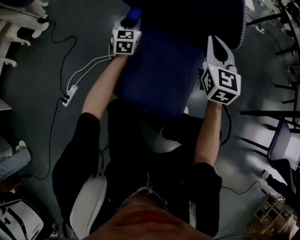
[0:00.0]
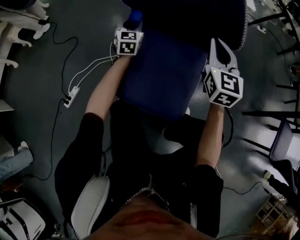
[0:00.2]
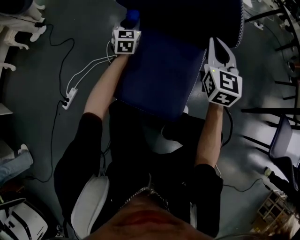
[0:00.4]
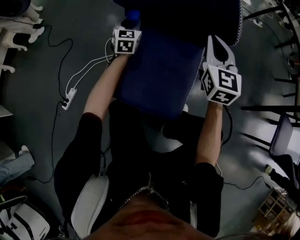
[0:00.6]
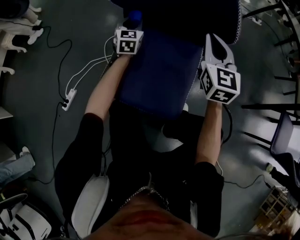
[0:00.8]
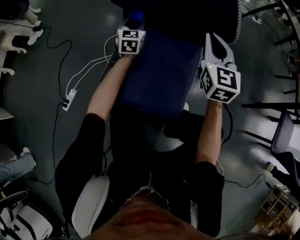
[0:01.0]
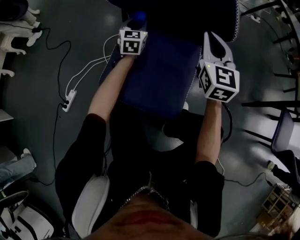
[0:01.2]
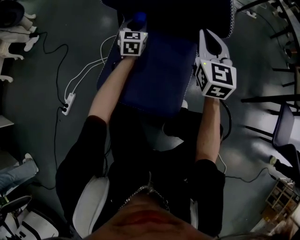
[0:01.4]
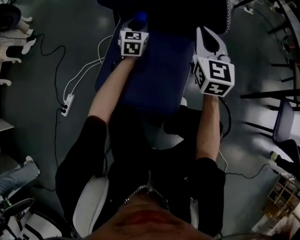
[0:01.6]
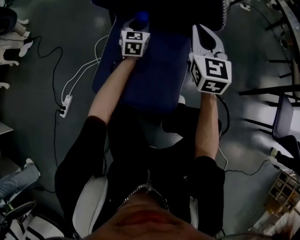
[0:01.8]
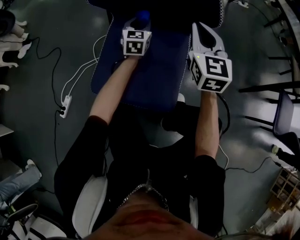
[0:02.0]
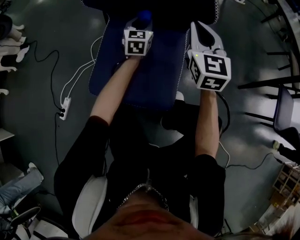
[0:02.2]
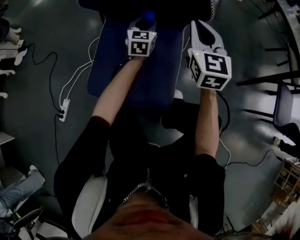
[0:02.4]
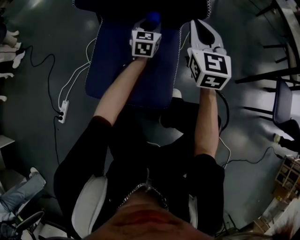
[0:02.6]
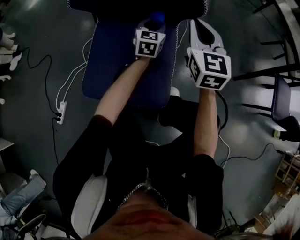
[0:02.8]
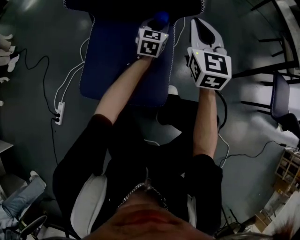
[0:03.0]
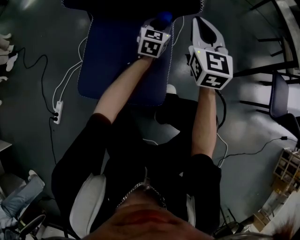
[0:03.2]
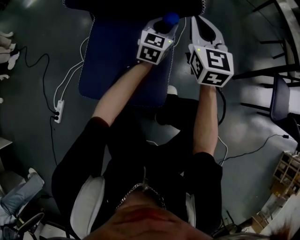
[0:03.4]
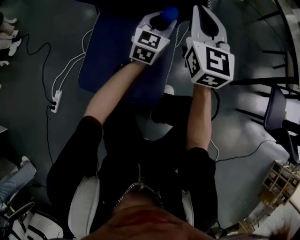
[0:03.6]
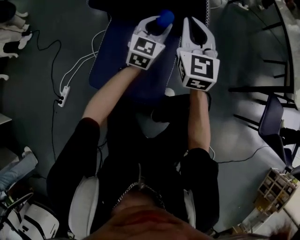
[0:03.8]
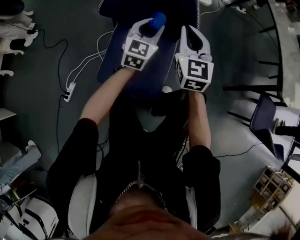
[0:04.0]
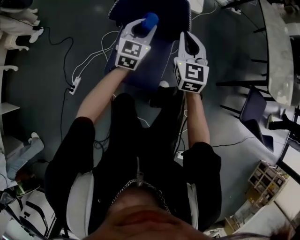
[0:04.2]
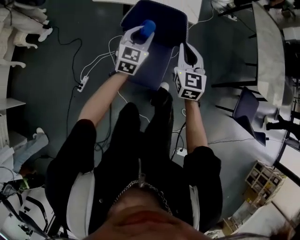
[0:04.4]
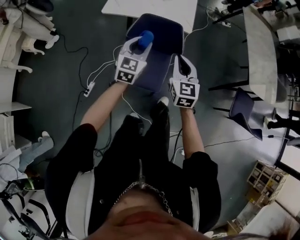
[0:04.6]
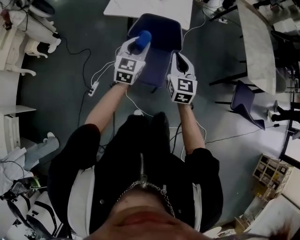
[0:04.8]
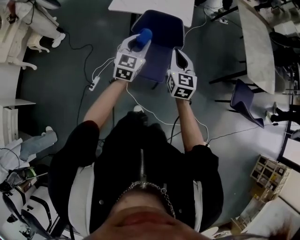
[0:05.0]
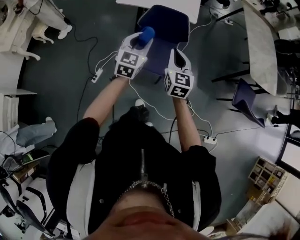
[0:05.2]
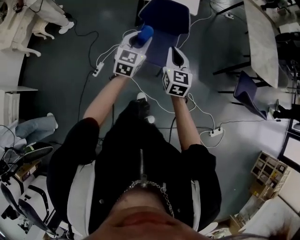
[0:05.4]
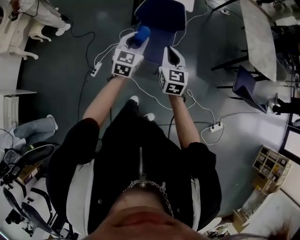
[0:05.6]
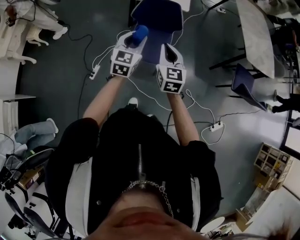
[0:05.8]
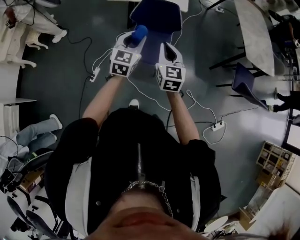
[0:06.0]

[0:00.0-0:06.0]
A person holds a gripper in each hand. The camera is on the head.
0:00.0 to 0:01.6: The left gripper shifts some 10 cm to the right.
0:01.6 to 0:03.0: The left gripper heads to the right, covering roughly 20 cm. Meanwhile the right gripper moves to the right, about 5 cm.
0:03.0 to 0:04.4: The two grippers go about 40 cm upward.
0:04.4 to 0:06.0: The two grippers go roughly 30 cm backward and upward.

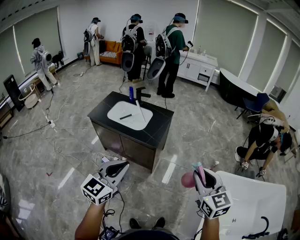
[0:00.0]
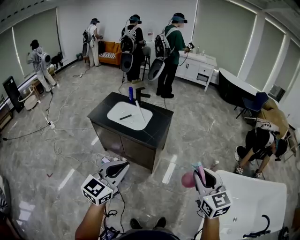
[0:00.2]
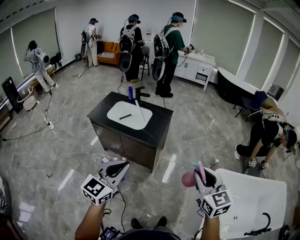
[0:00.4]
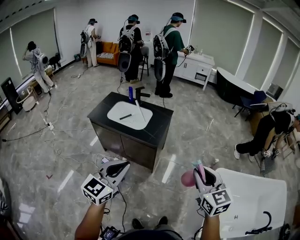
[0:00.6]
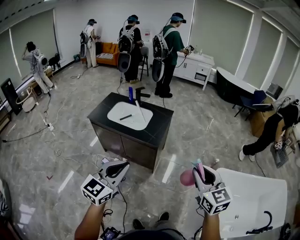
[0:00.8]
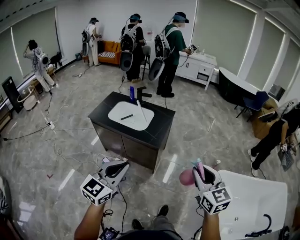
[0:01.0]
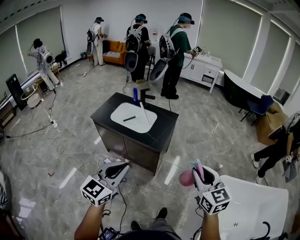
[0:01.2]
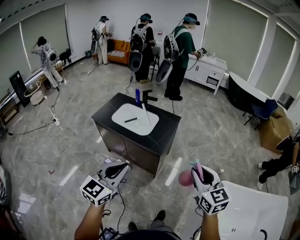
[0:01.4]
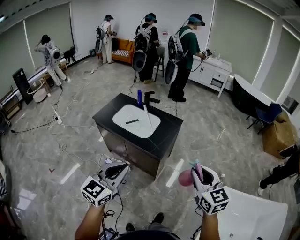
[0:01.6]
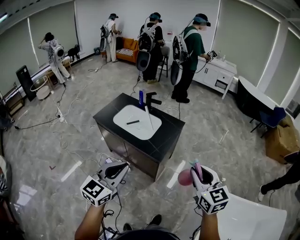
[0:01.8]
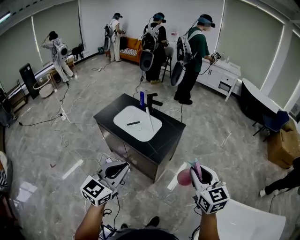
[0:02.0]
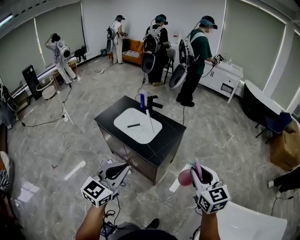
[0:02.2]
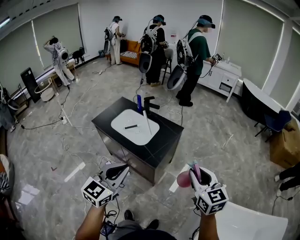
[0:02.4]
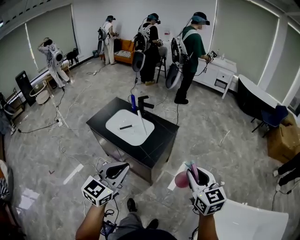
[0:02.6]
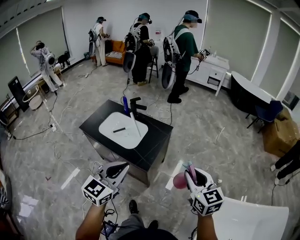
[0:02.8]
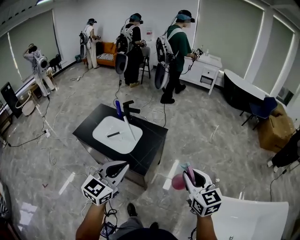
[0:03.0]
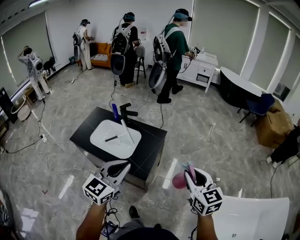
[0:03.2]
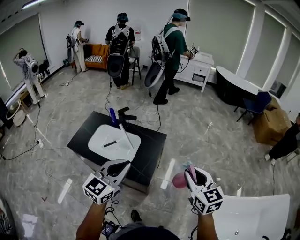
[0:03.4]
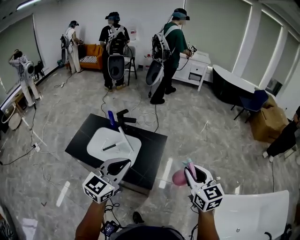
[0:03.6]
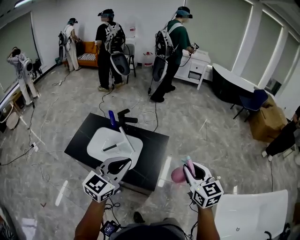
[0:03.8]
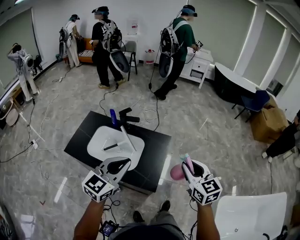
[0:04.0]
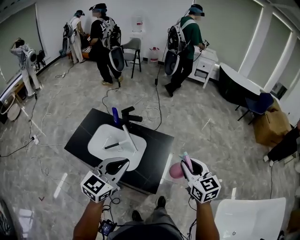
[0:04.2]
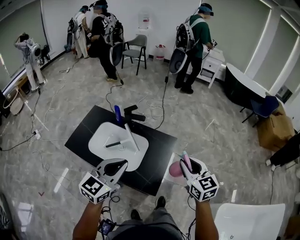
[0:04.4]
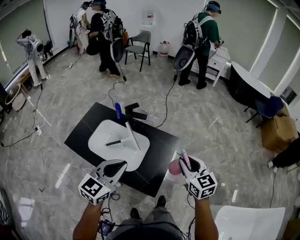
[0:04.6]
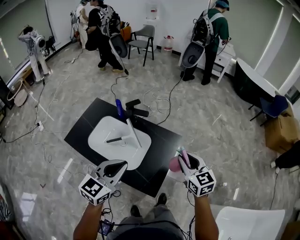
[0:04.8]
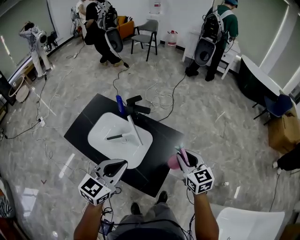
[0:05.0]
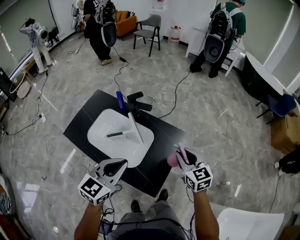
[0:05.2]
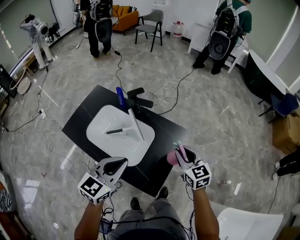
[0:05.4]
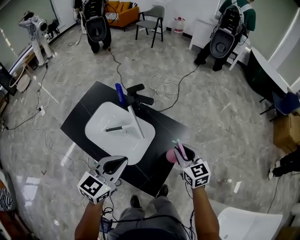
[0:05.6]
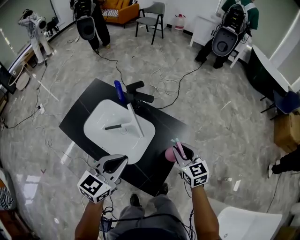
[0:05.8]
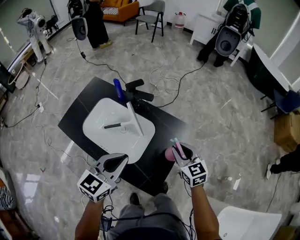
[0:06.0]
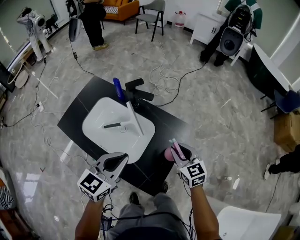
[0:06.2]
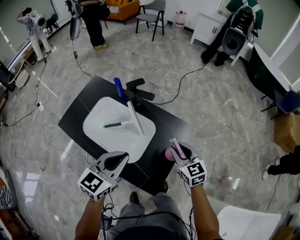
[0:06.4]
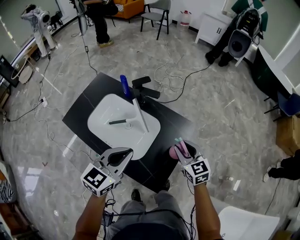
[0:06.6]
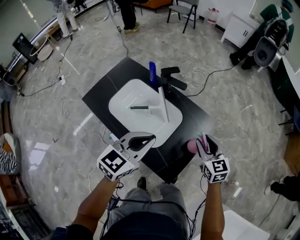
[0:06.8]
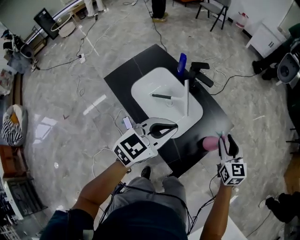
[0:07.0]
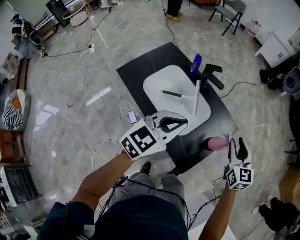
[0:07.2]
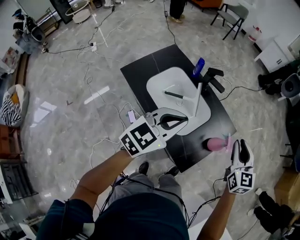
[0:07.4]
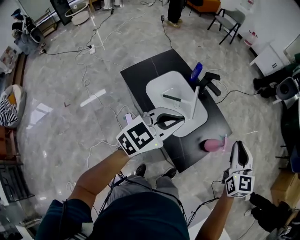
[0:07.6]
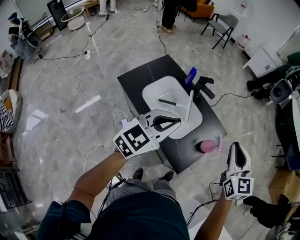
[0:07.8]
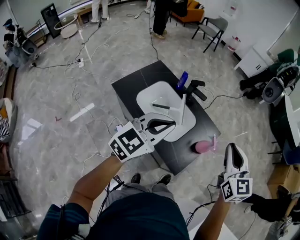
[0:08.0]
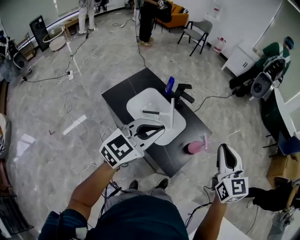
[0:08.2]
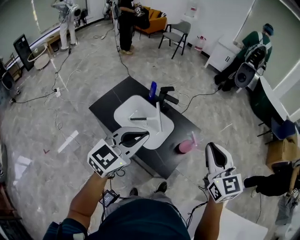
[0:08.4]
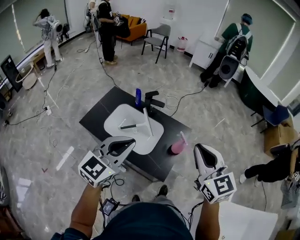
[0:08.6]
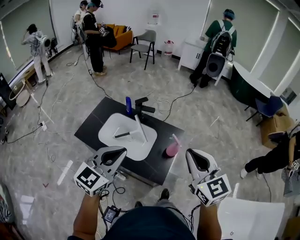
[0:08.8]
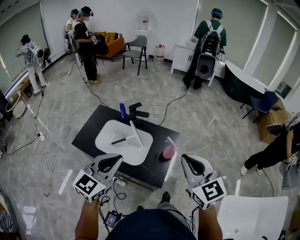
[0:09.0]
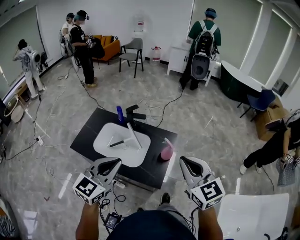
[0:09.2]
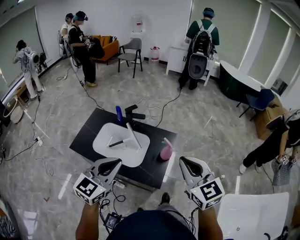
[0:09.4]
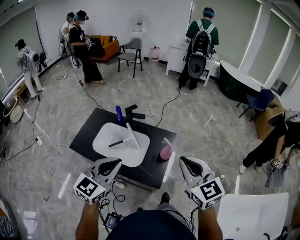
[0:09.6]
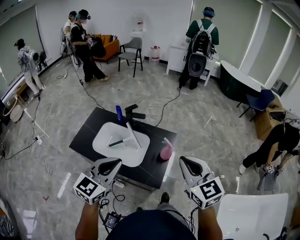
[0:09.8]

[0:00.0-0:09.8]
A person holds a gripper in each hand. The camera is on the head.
0:00.0 to 0:01.4: The left gripper is displaced forward by roughly 5 cm; the right gripper heads forward, covering some 10 cm.
0:01.4 to 0:02.8: The two grippers go some 20 cm forward and to the right.
0:02.8 to 0:04.2: Both grippers move forward and to the left, about 30 cm.
0:04.2 to 0:05.6: The left gripper shifts roughly 15 cm downward and forward, while the right gripper is displaced downward and forward by about 30 cm.
0:05.6 to 0:07.0: There are only small adjustments of the grippers.
0:07.0 to 0:08.4: The right gripper moves upward and backward, about 30 cm, and closes its fingers, while the left gripper travels upward and backward by approximately 20 cm.
0:08.4 to 0:09.8: The right gripper goes some 5 cm backward.

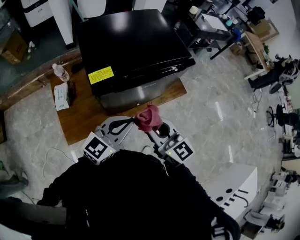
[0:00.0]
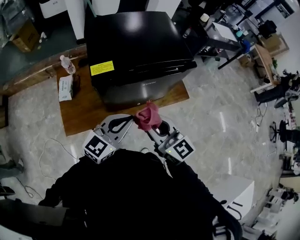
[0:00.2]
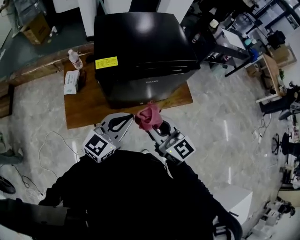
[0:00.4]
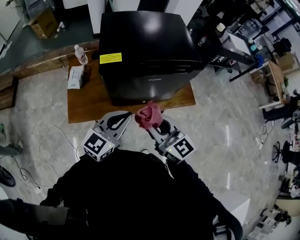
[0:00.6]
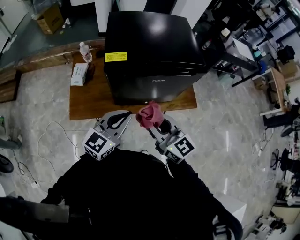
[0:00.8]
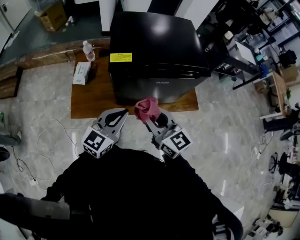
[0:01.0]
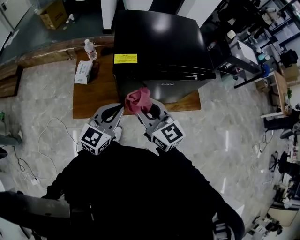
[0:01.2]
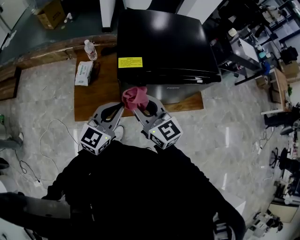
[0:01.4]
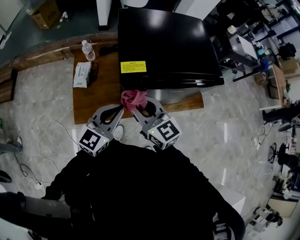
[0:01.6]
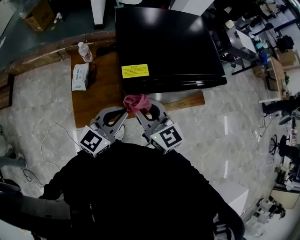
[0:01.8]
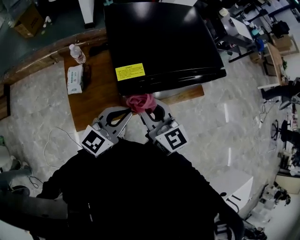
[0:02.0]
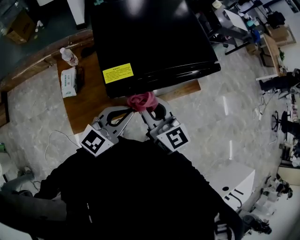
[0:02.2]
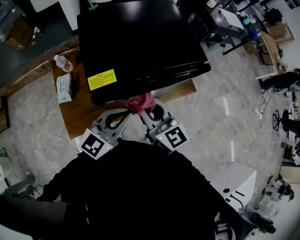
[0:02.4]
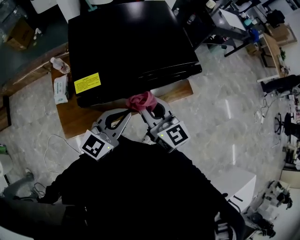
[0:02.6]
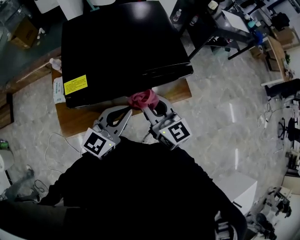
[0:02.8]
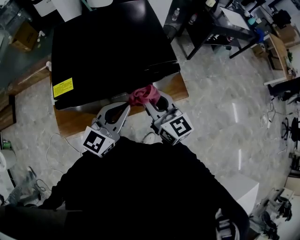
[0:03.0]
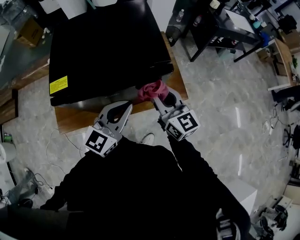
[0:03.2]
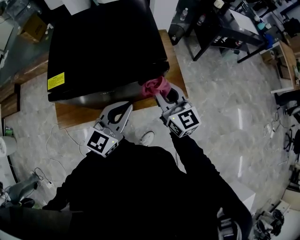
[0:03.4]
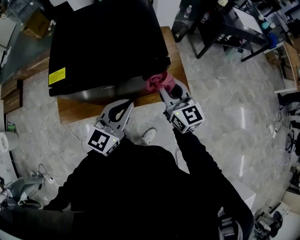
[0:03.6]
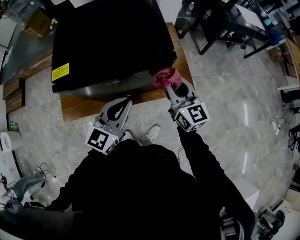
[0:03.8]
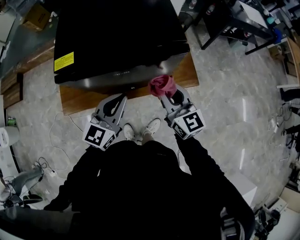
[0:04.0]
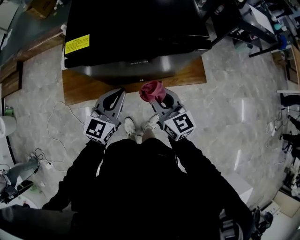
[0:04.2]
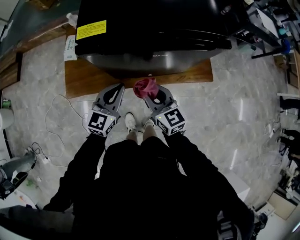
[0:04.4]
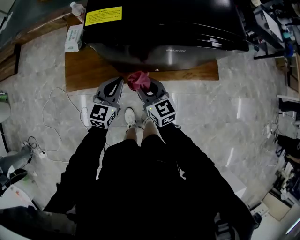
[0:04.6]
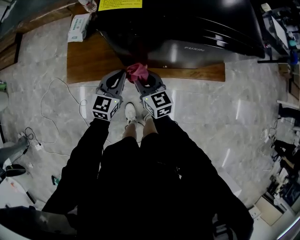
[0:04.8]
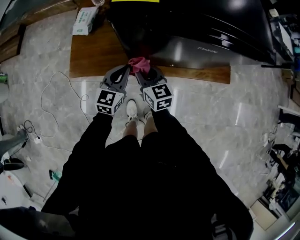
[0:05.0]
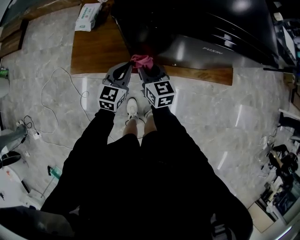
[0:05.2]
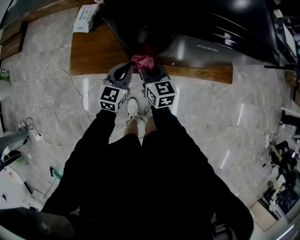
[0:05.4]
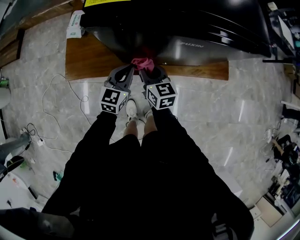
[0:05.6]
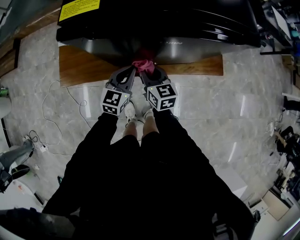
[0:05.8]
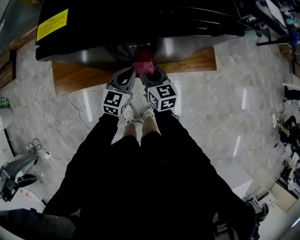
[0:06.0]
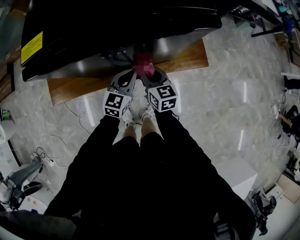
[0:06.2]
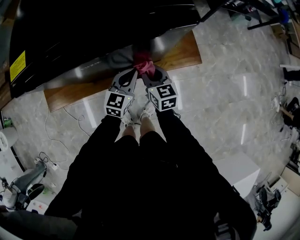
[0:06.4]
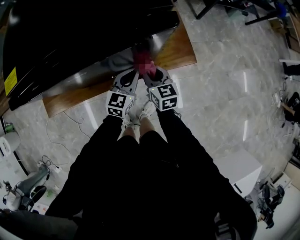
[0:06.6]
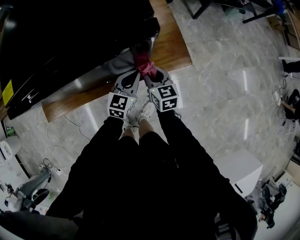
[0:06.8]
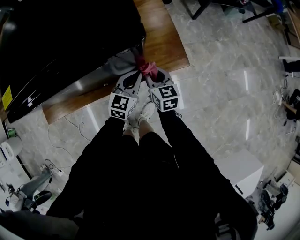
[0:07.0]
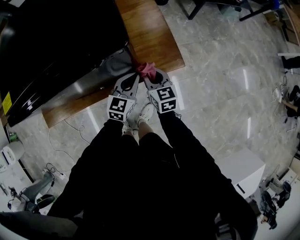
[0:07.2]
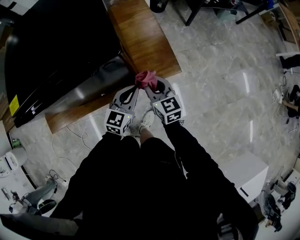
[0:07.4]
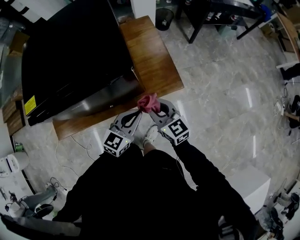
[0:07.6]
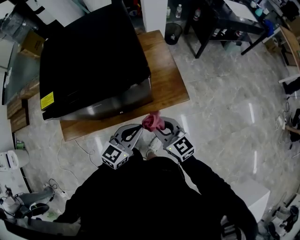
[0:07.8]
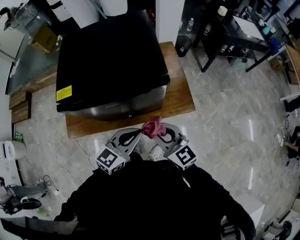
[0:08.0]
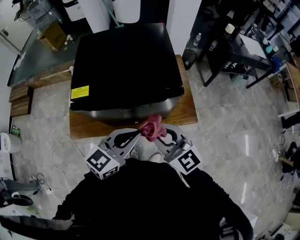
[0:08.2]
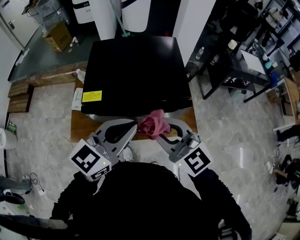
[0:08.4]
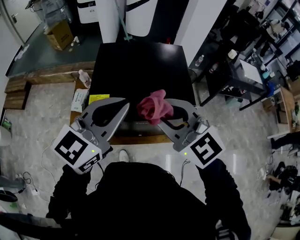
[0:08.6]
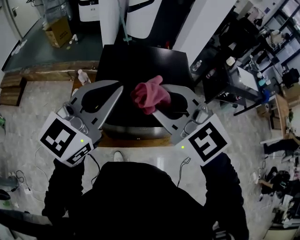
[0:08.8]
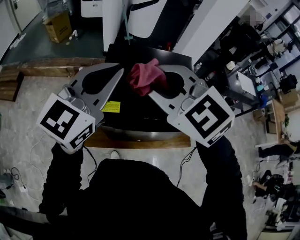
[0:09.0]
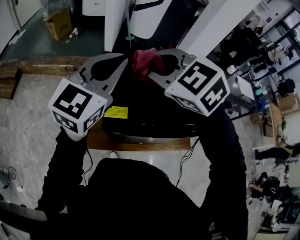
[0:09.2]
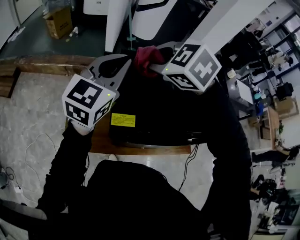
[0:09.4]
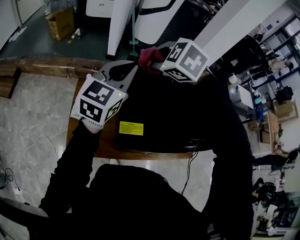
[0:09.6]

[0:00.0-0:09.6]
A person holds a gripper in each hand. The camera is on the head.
0:00.0 to 0:01.6: The left gripper moves to the left, roughly 15 cm, and changes its angle by approximately 20 degrees. Meanwhile the right gripper shifts approximately 15 cm to the left and forward.
0:01.6 to 0:03.2: The two grippers go about 30 cm to the right.
0:03.2 to 0:04.8: The grippers both shift to the left and downward by approximately 35 cm. The right gripper changes its angle by approximately 20 degrees, while the left gripper swivels approximately 30 degrees.
0:04.8 to 0:06.4: Both grippers move to the right, roughly 25 cm.
0:06.4 to 0:08.0: The grippers both shift upward by some 25 cm. The right gripper rotates approximately 30 degrees.
0:08.0 to 0:09.6: The two grippers travel together, forward and to the left, roughly 50 cm. Both grippers move upward, about 25 cm. The left gripper changes its angle by about 30 degrees; the right gripper tilts its fingers roughly 40 degrees downward.
